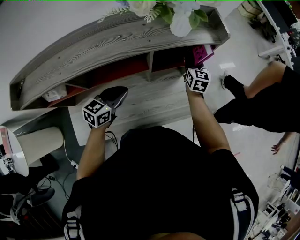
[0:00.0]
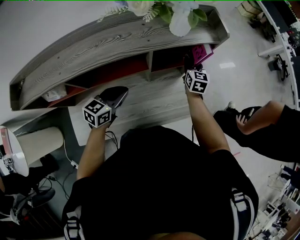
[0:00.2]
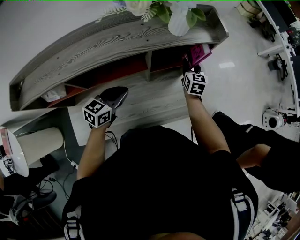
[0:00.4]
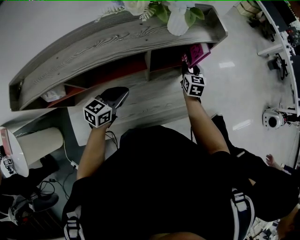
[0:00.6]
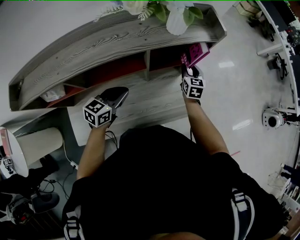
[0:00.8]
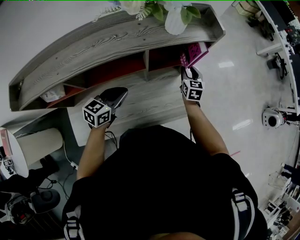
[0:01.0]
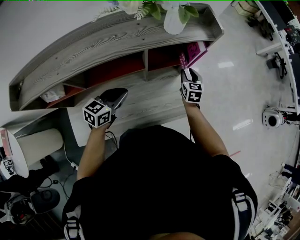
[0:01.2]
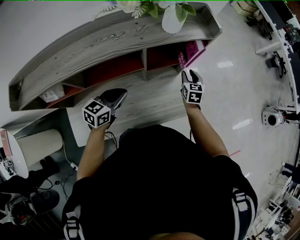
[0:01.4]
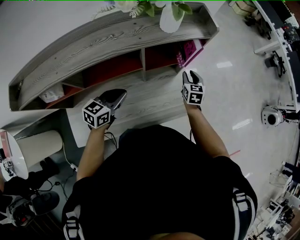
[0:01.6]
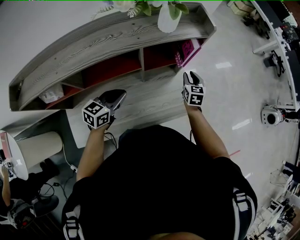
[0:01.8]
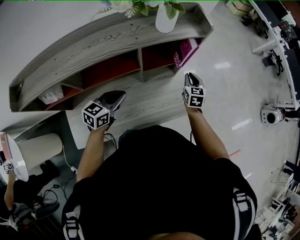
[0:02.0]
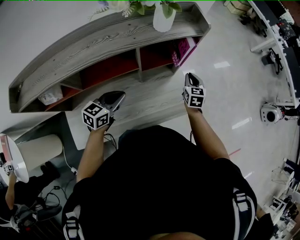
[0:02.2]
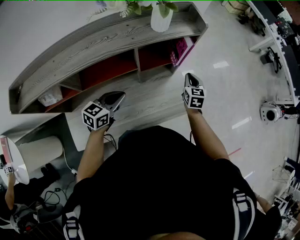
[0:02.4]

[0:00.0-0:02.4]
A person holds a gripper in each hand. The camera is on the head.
0.0 to 1.2 s: The right gripper travels downward and backward by approximately 10 cm.
1.2 to 2.4 s: The right gripper moves to the right, about 5 cm, and closes up.

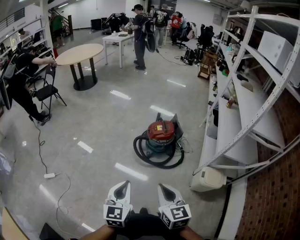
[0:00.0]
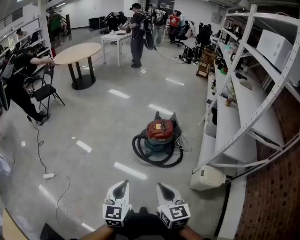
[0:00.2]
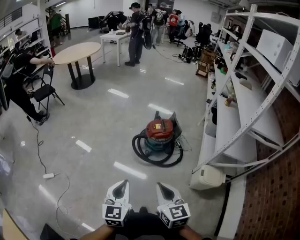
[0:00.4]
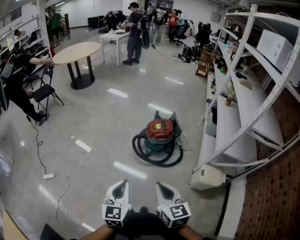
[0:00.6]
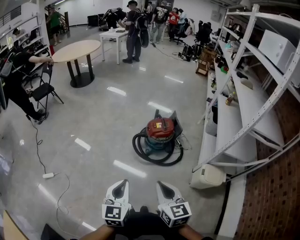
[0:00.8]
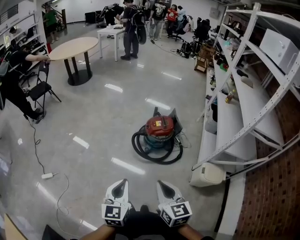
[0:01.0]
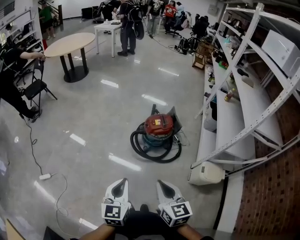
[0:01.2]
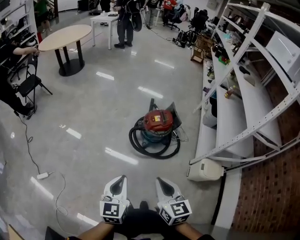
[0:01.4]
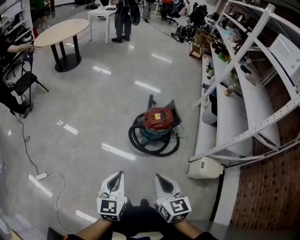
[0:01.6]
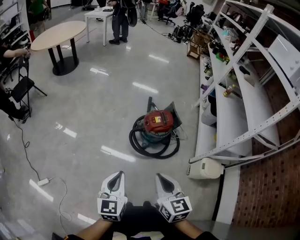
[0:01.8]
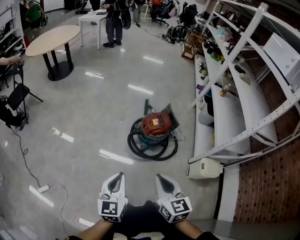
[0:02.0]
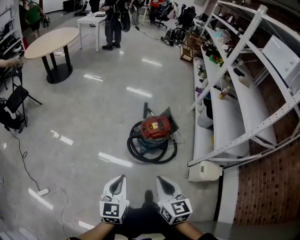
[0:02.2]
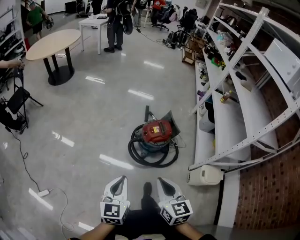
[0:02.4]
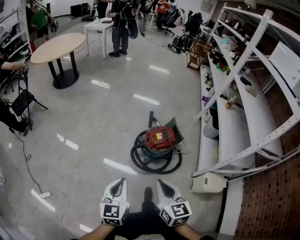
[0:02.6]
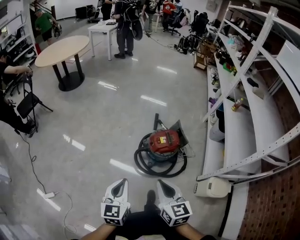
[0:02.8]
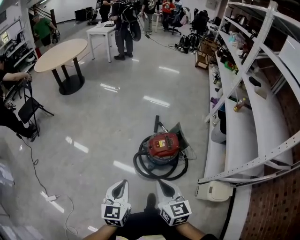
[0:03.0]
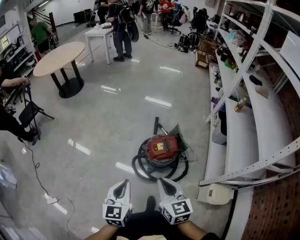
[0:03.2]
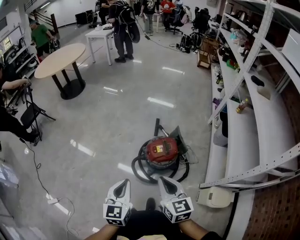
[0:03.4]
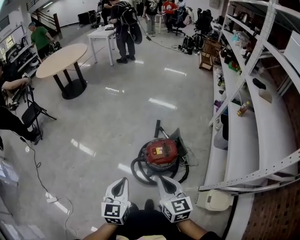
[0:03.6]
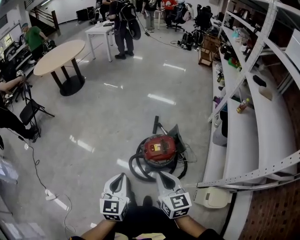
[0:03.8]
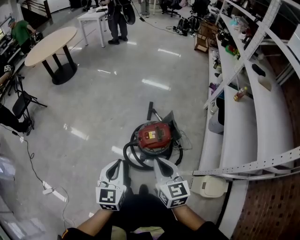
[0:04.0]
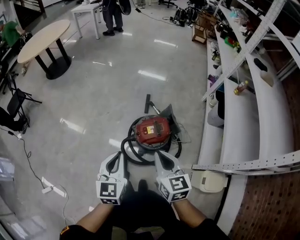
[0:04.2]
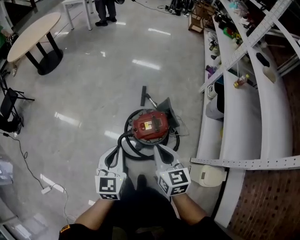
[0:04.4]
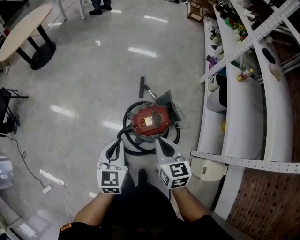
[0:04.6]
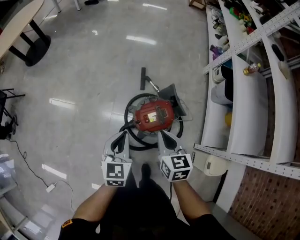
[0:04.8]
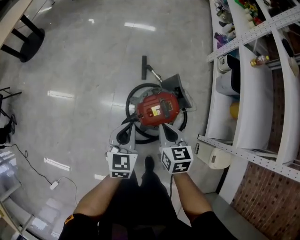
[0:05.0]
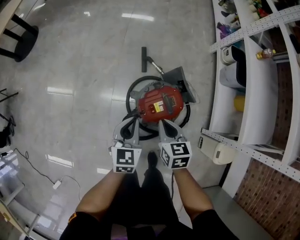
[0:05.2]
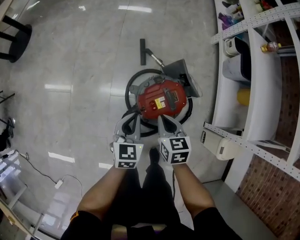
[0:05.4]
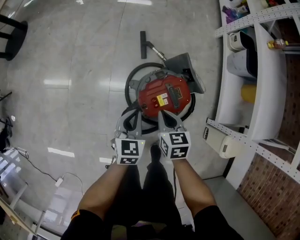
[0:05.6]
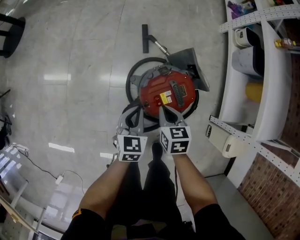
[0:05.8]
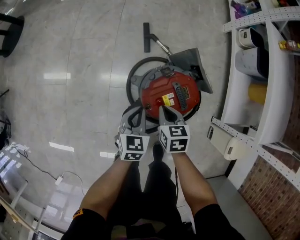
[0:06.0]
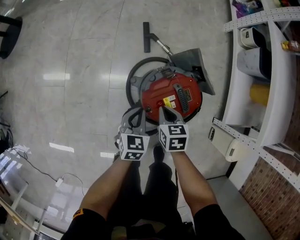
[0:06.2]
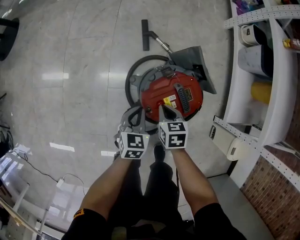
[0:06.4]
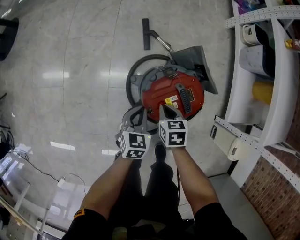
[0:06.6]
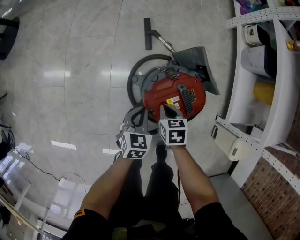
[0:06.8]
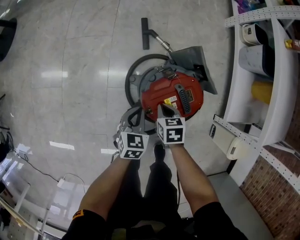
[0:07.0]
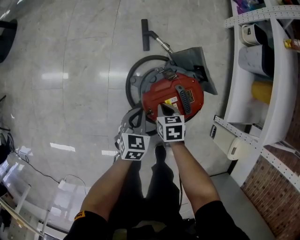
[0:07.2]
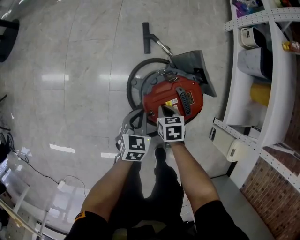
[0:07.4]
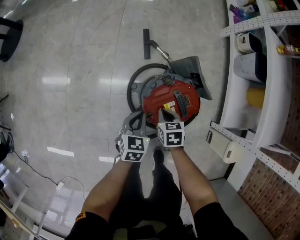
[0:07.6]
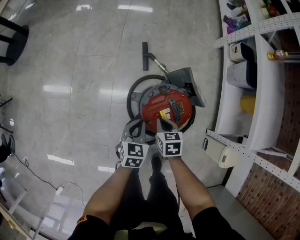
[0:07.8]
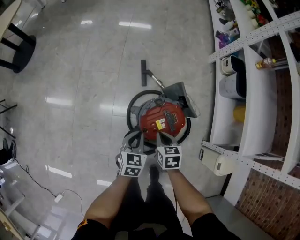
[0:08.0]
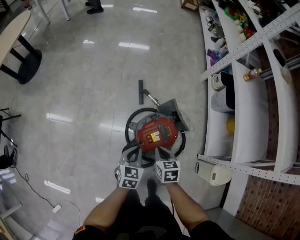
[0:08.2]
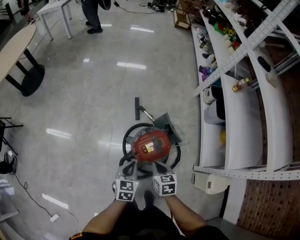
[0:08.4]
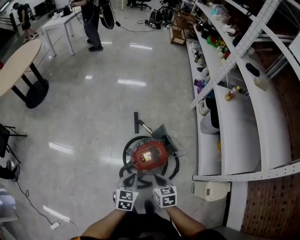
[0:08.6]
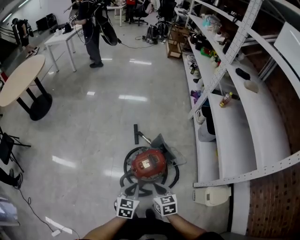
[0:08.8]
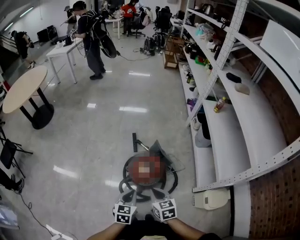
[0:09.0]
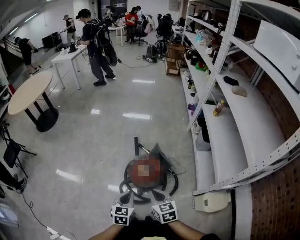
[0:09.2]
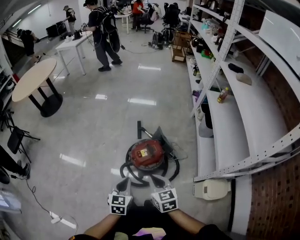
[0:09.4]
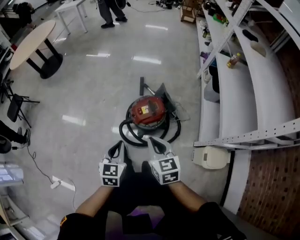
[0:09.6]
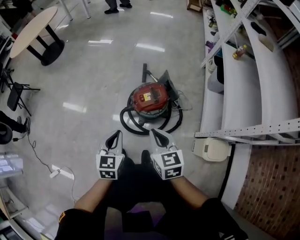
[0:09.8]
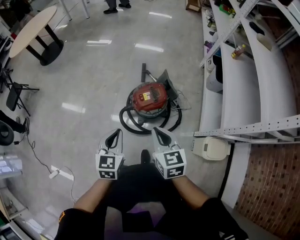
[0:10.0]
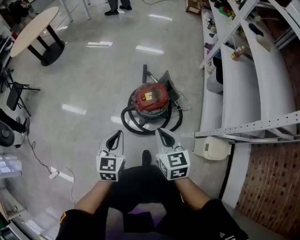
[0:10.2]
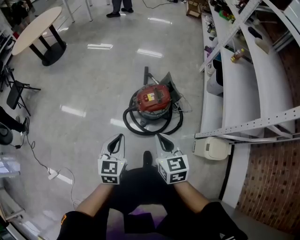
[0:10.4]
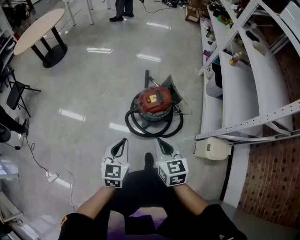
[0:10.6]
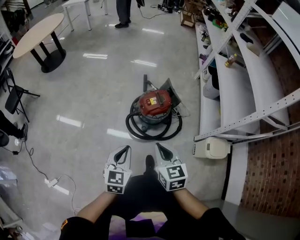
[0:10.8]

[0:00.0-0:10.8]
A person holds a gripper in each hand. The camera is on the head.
0.0 to 1.6 s: The two grippers go about 15 cm forward and to the left.
1.6 to 3.0 s: The grippers both shift forward by approximately 15 cm.
3.0 to 4.6 s: The left gripper heads forward, covering approximately 25 cm; the right gripper shifts about 25 cm forward, to the right and downward.
4.6 to 6.2 s: Both grippers move downward, about 40 cm. The right gripper changes its angle by some 30 degrees. The left gripper rotates some 30 degrees.
6.2 to 7.8 s: The left gripper moves upward, roughly 5 cm.
7.8 to 9.2 s: The grippers both shift upward and backward by approximately 35 cm. The right gripper changes its angle by some 30 degrees.
9.2 to 10.8 s: Both grippers travel together backward and to the left, about 20 cm.

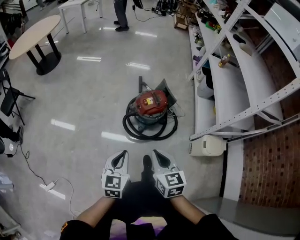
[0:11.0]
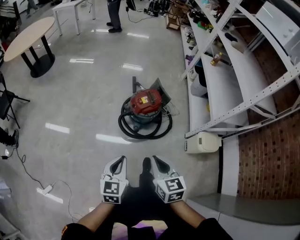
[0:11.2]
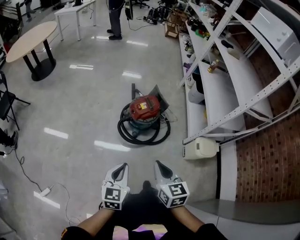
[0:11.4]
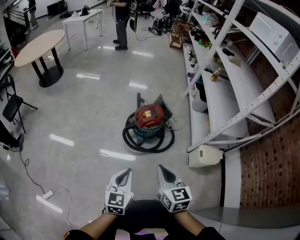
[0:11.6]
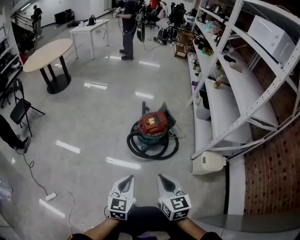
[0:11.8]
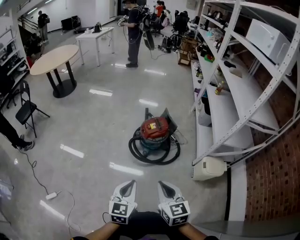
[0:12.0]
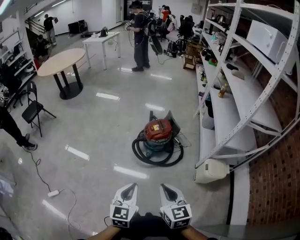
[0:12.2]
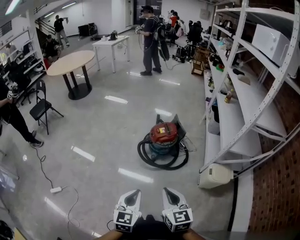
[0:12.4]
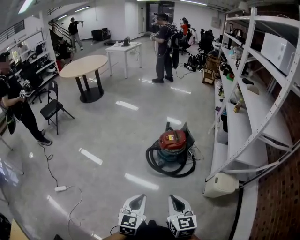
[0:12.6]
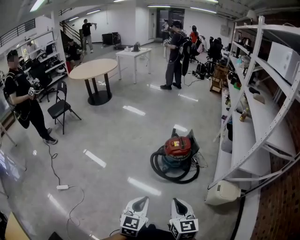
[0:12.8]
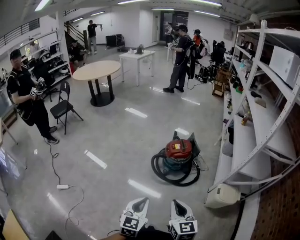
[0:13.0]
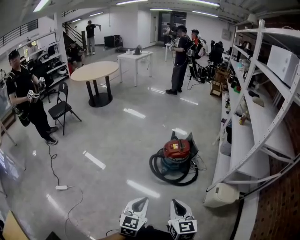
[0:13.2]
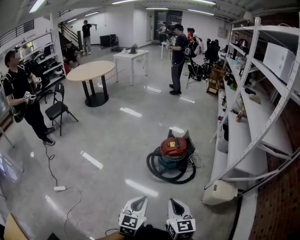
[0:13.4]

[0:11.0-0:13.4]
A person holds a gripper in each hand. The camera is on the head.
11.0 to 12.2 s: The grippers both shift backward by roughly 20 cm.
12.2 to 13.4 s: The left gripper ends up some 5 cm from where it was.

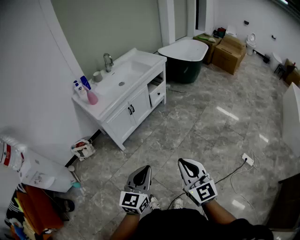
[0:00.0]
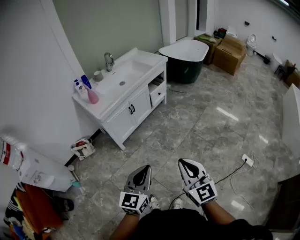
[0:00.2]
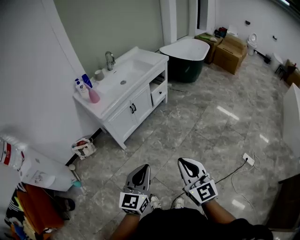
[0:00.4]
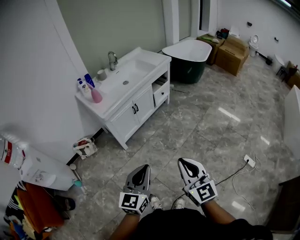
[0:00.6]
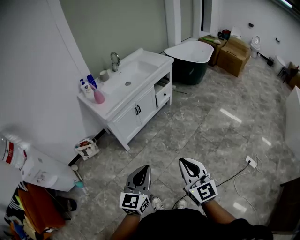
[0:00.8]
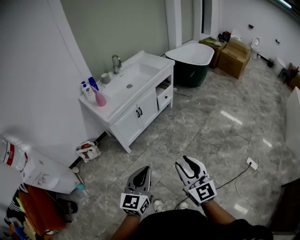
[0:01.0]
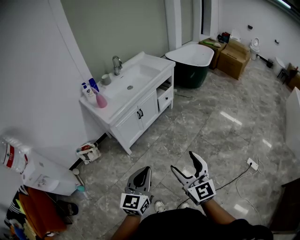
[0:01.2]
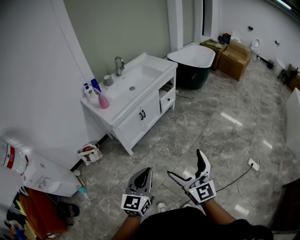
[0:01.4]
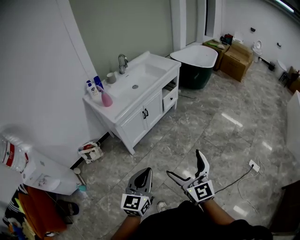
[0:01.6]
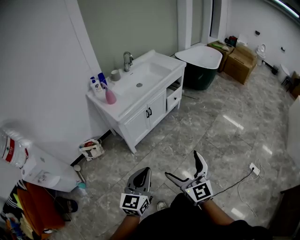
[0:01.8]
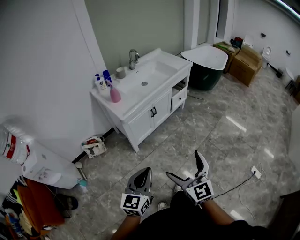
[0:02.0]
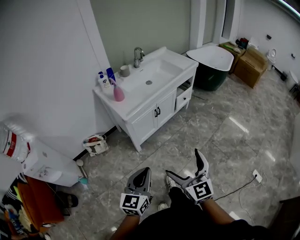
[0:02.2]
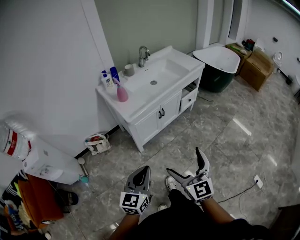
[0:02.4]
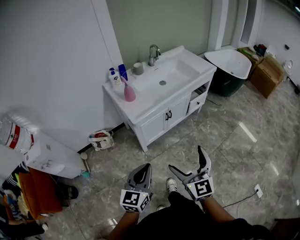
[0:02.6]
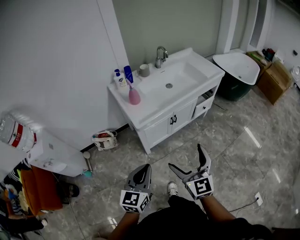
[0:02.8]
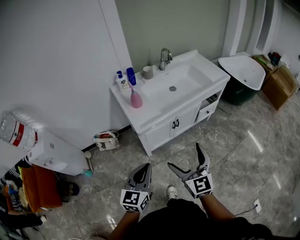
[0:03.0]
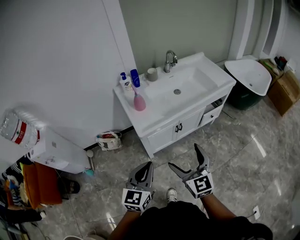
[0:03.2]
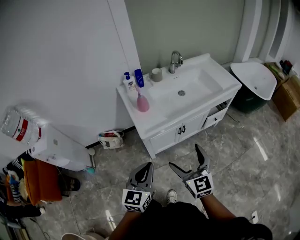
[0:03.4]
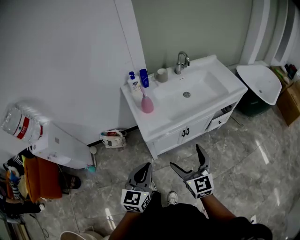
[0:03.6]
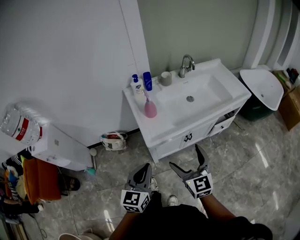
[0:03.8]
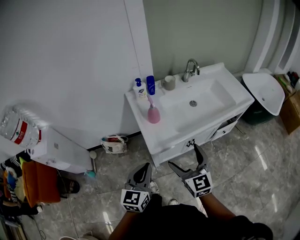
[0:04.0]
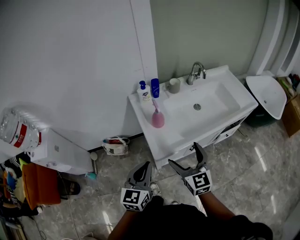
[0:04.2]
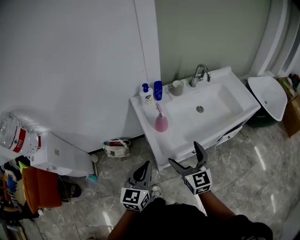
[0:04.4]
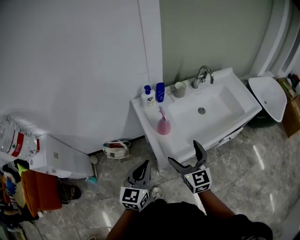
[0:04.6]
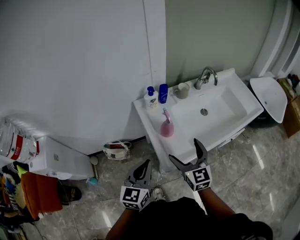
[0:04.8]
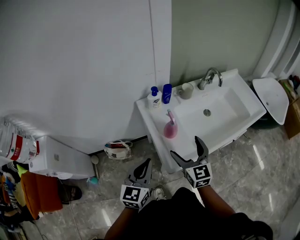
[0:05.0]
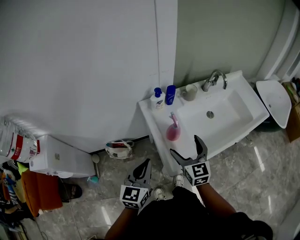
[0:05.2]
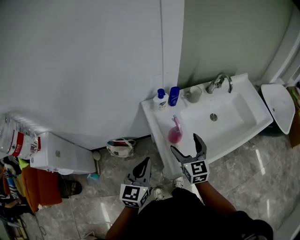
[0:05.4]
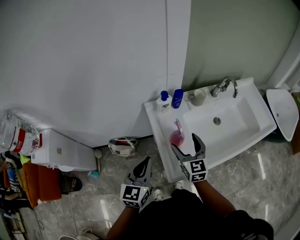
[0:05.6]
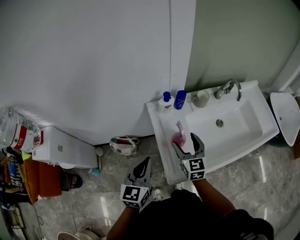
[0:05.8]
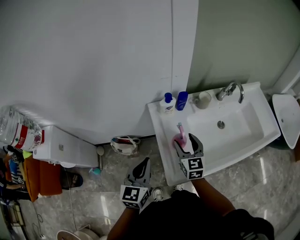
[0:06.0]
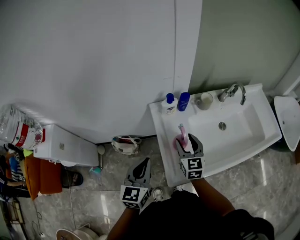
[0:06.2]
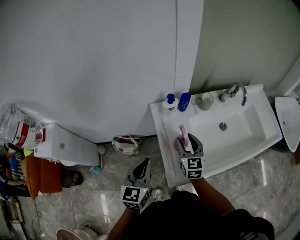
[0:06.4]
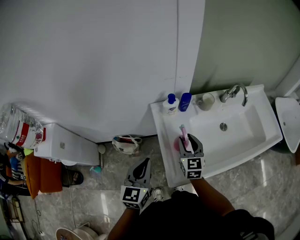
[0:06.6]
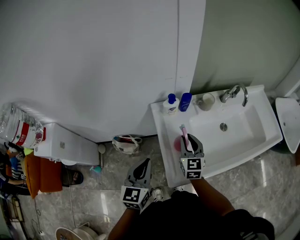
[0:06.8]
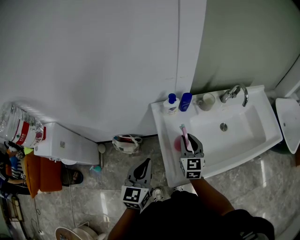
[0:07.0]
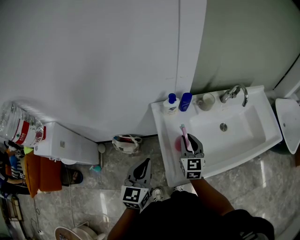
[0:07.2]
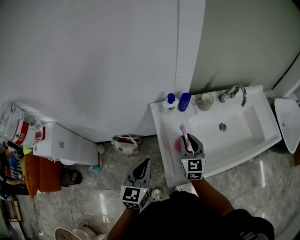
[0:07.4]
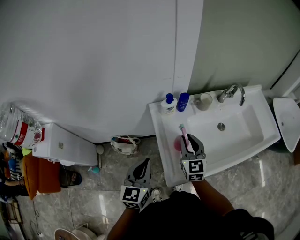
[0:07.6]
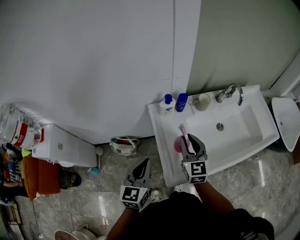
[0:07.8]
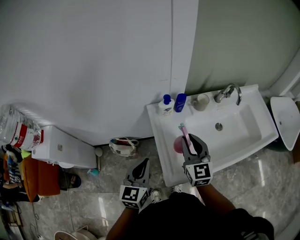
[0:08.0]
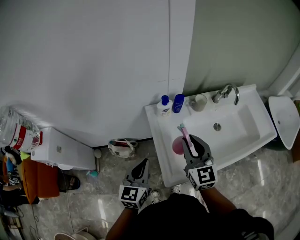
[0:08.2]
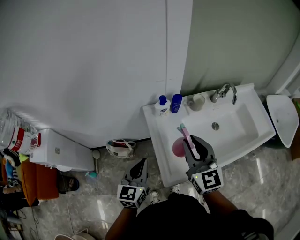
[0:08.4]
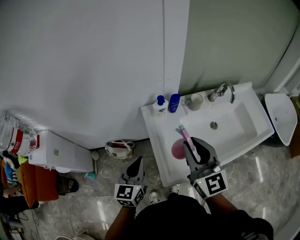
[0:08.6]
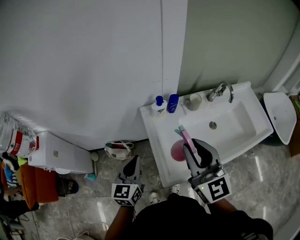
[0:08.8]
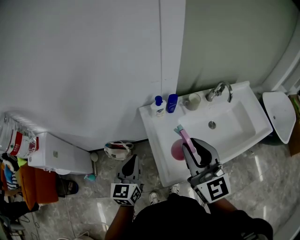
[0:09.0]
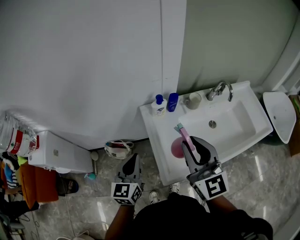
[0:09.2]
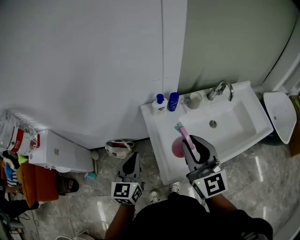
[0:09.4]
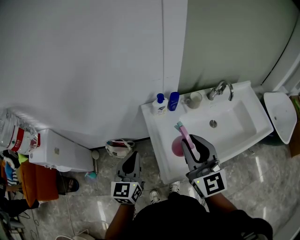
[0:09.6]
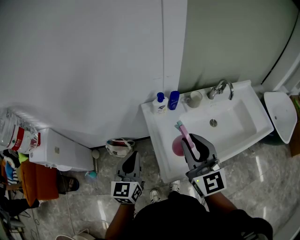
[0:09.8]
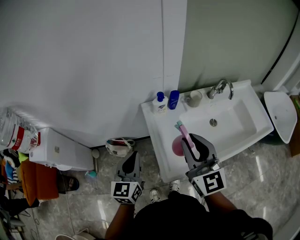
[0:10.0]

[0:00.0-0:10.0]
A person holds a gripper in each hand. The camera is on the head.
0.0 to 1.4 s: Both grippers travel together to the left, approximately 10 cm. The right gripper opens up.
1.4 to 2.8 s: Both grippers move forward and to the left, some 25 cm.
2.8 to 4.2 s: The grippers both shift forward by approximately 25 cm.
4.2 to 5.8 s: The left gripper goes roughly 20 cm forward and to the left. The right gripper is displaced forward by about 25 cm.
5.8 to 7.2 s: The right gripper closes.
7.2 to 8.6 s: The right gripper moves upward and backward, approximately 20 cm.
8.6 to 10.0 s: The grippers make only small movements.
